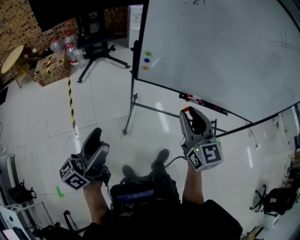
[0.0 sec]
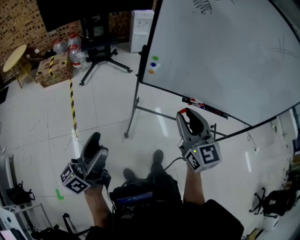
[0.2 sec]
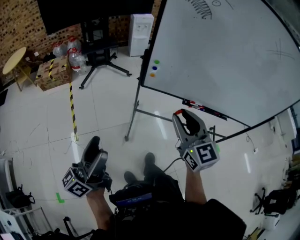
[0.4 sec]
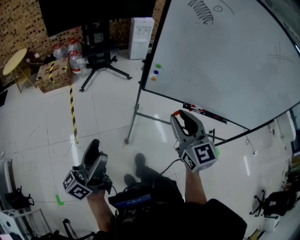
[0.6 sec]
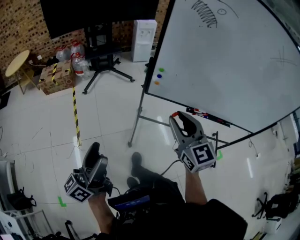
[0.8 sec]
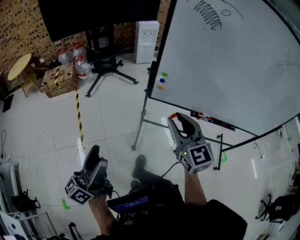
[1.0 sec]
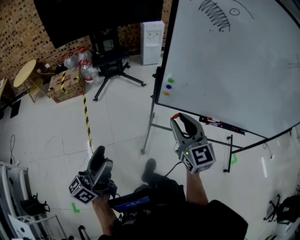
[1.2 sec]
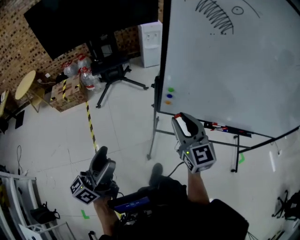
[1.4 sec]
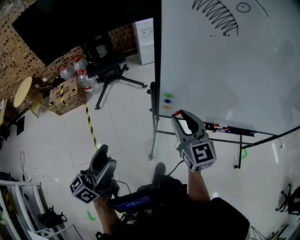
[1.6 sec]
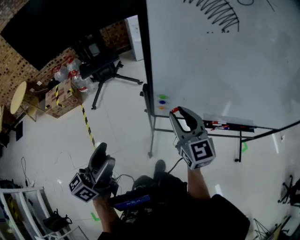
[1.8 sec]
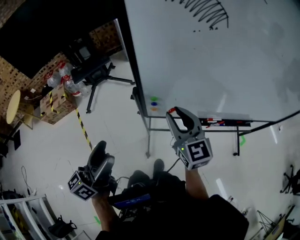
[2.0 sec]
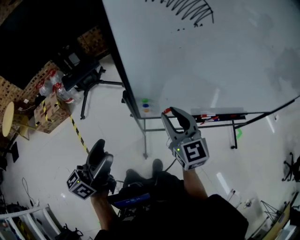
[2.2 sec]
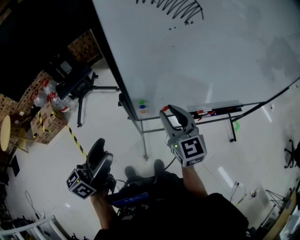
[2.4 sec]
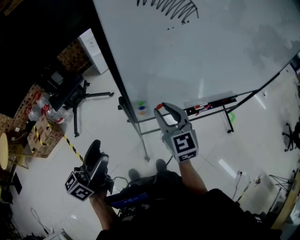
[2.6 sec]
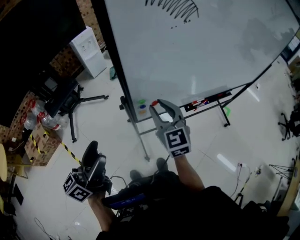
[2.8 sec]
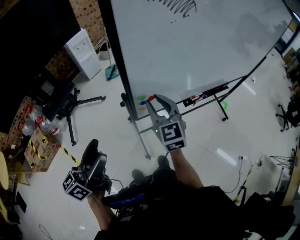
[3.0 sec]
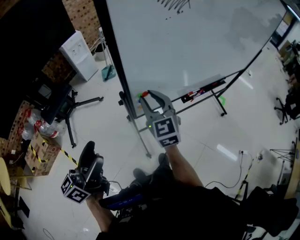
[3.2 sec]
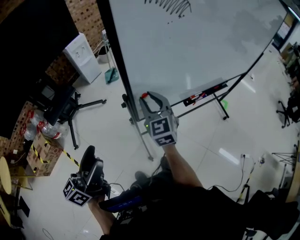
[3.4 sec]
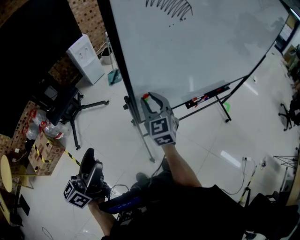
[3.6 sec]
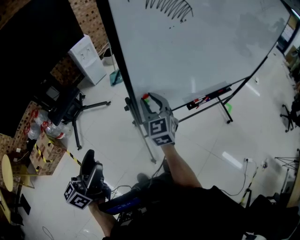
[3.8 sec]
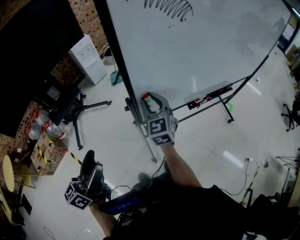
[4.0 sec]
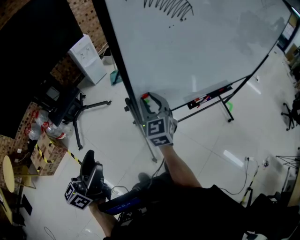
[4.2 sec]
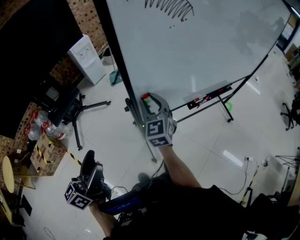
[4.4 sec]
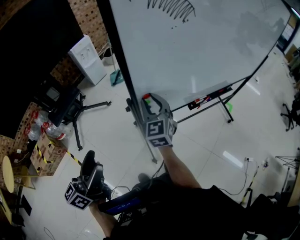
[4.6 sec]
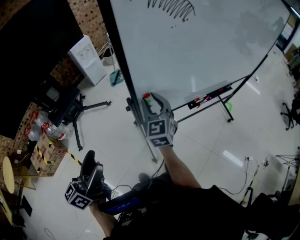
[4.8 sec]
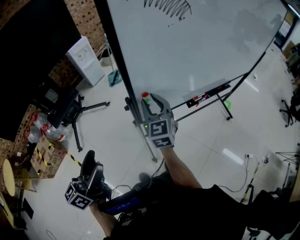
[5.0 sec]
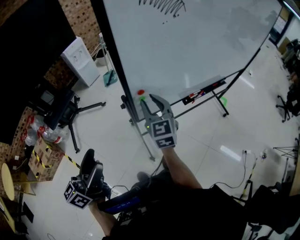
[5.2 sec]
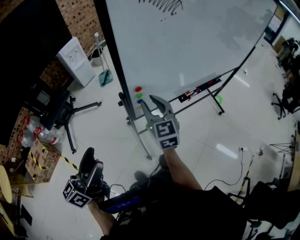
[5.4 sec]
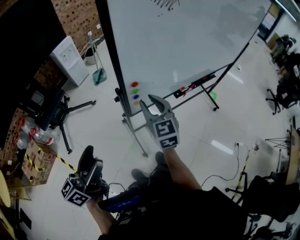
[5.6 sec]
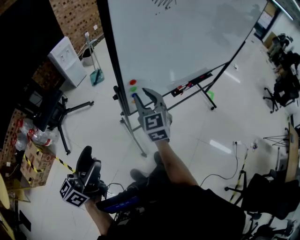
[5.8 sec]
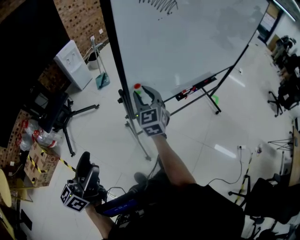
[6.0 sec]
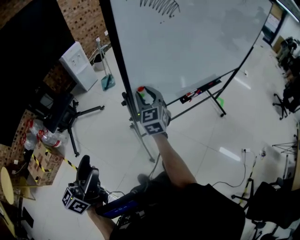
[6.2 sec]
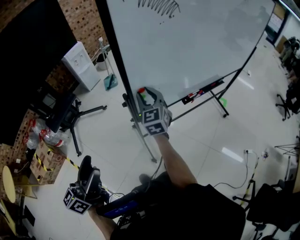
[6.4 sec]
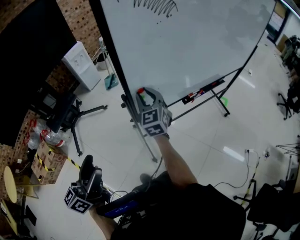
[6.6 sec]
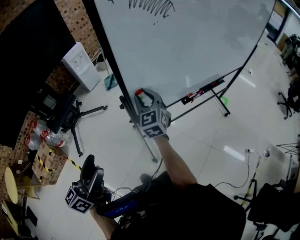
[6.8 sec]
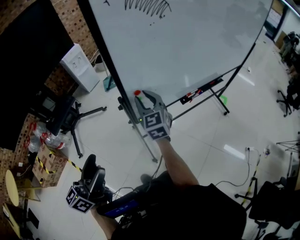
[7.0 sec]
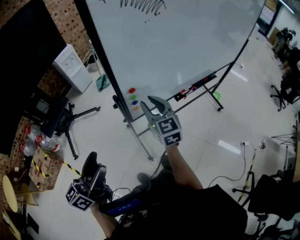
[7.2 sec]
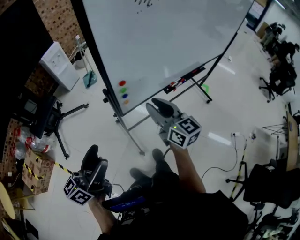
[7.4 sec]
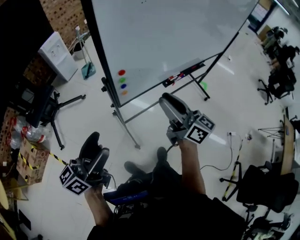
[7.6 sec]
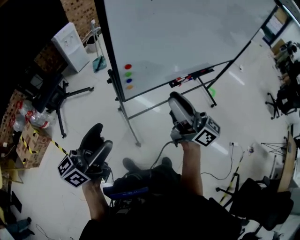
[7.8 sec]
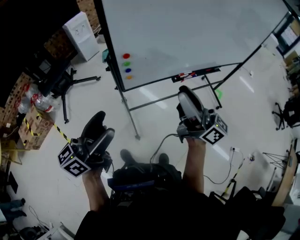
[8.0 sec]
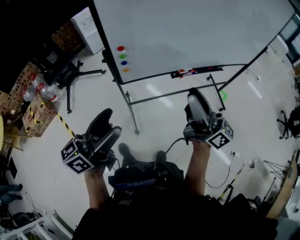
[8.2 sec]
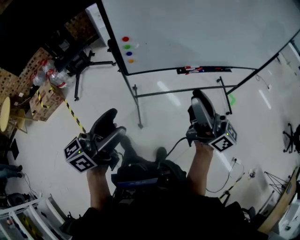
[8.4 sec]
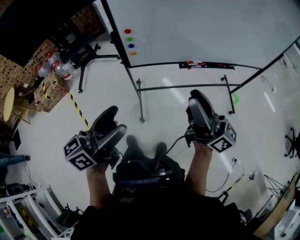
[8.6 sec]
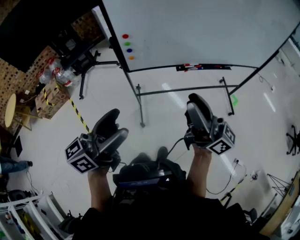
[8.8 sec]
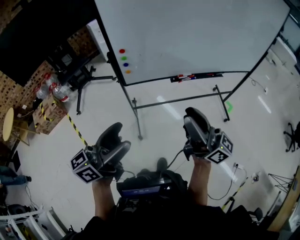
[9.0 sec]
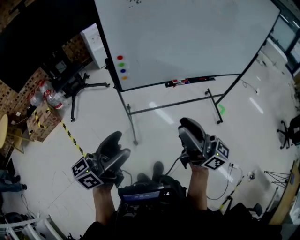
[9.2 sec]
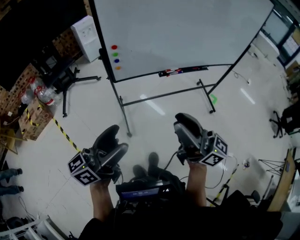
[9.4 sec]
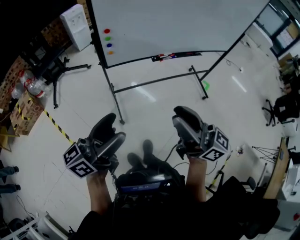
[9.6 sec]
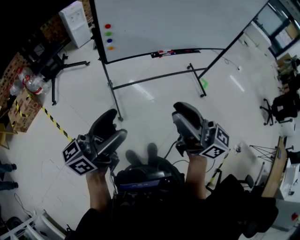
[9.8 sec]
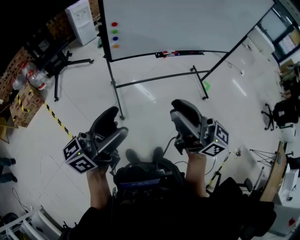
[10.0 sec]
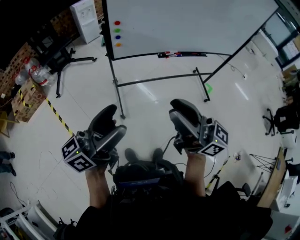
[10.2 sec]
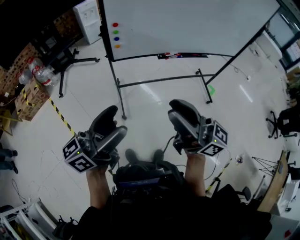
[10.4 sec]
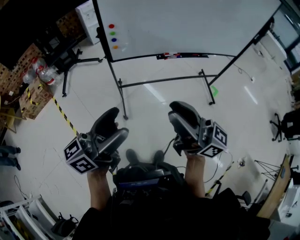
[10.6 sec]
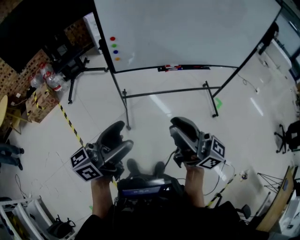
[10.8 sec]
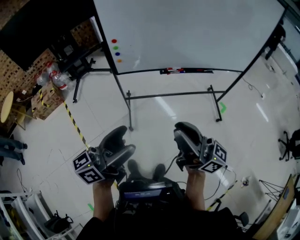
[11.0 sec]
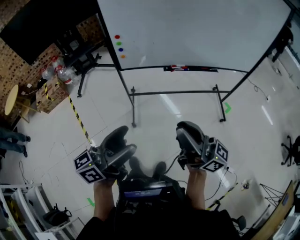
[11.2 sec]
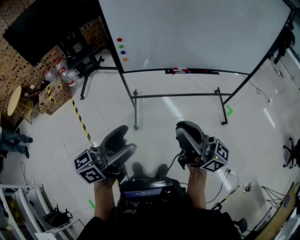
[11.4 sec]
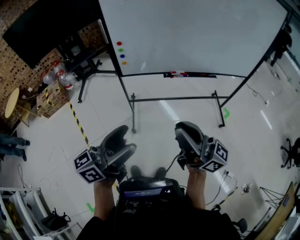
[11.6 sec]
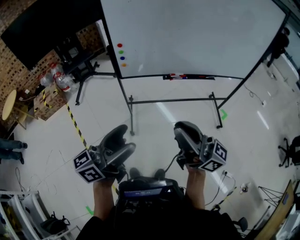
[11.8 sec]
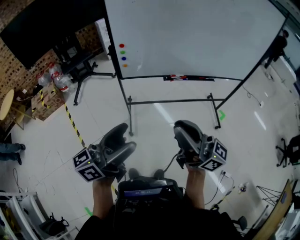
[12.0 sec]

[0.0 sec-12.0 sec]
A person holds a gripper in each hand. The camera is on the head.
0.0 sec to 1.6 sec: The right gripper heads forward and to the left, covering about 25 cm. The left gripper moves forward, about 20 cm.
1.6 sec to 3.0 sec: The right gripper changes place by approximately 10 cm, and turns by roughly 30 degrees. The left gripper moves some 15 cm, and turns by about 30 degrees.
3.0 sec to 4.4 sec: The grippers move only a little.
6.0 sec to 7.6 sec: The left gripper heads to the right, covering roughly 10 cm, while the right gripper shifts approximately 20 cm to the right and backward, and rolls clockwise, seen from behind, by some 50 degrees.
7.6 sec to 9.0 sec: The right gripper heads backward and to the right, covering approximately 25 cm, and rotates some 30 degrees; the left gripper moves to the right and backward, about 30 cm.
9.0 sec to 10.4 sec: The right gripper moves backward and to the left, approximately 10 cm, while the left gripper goes approximately 5 cm backward.
10.4 sec to 12.0 sec: Both grippers travel together to the right, roughly 10 cm.

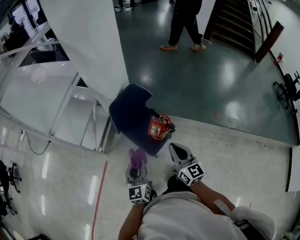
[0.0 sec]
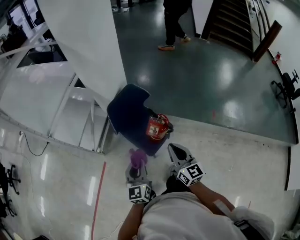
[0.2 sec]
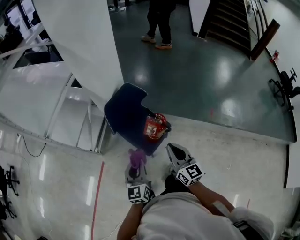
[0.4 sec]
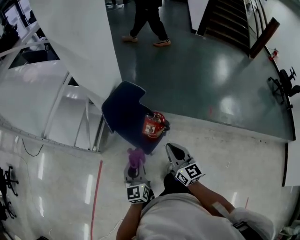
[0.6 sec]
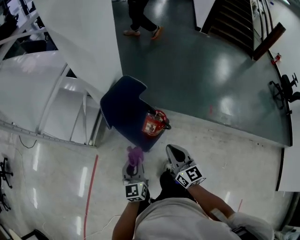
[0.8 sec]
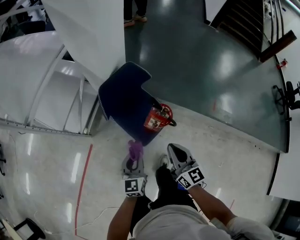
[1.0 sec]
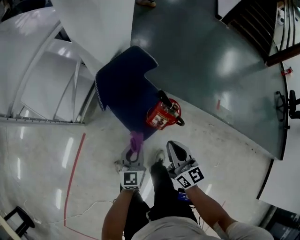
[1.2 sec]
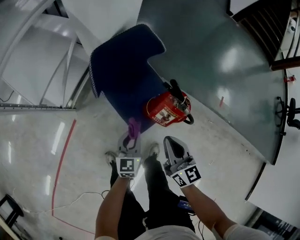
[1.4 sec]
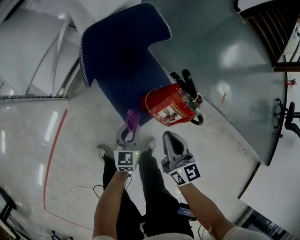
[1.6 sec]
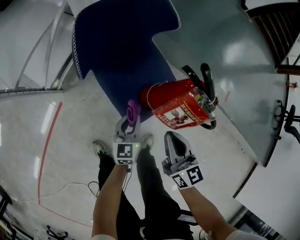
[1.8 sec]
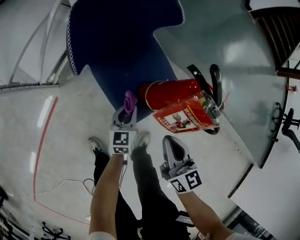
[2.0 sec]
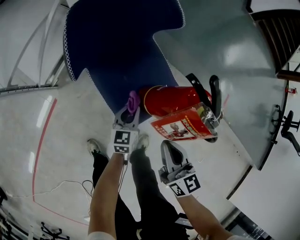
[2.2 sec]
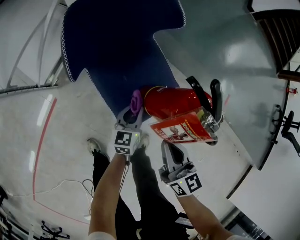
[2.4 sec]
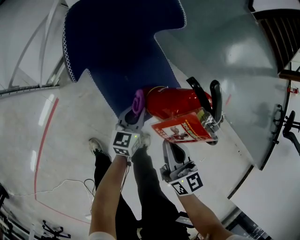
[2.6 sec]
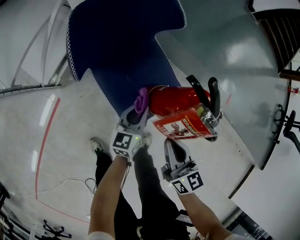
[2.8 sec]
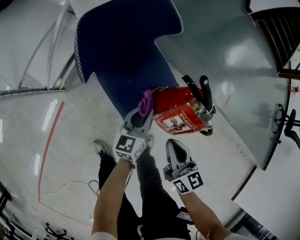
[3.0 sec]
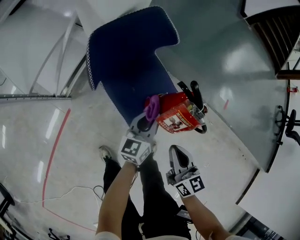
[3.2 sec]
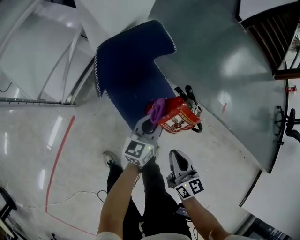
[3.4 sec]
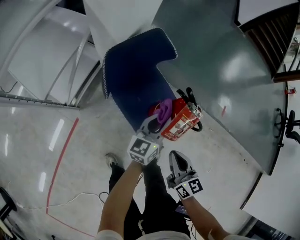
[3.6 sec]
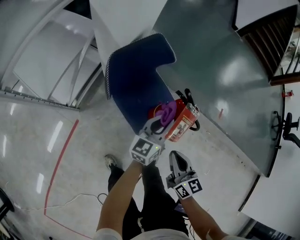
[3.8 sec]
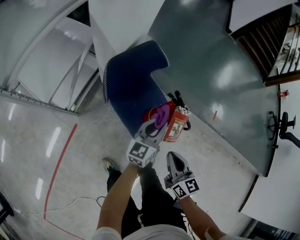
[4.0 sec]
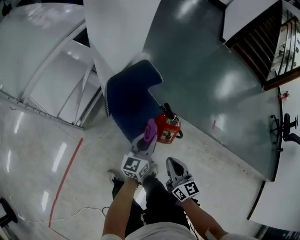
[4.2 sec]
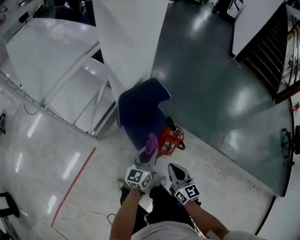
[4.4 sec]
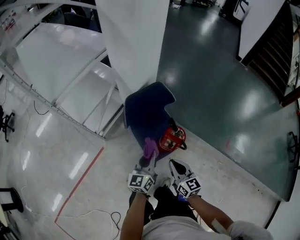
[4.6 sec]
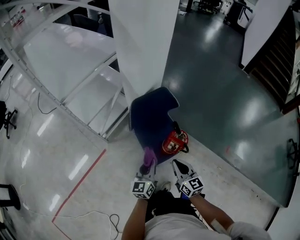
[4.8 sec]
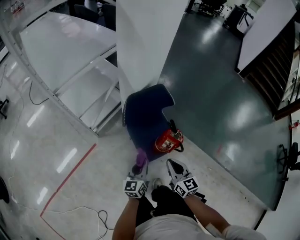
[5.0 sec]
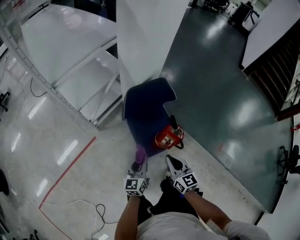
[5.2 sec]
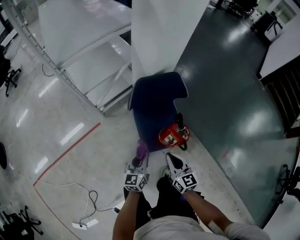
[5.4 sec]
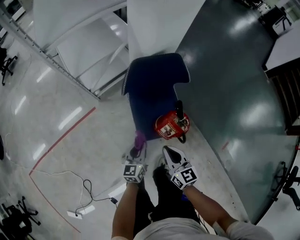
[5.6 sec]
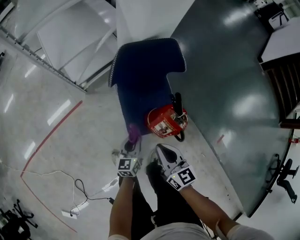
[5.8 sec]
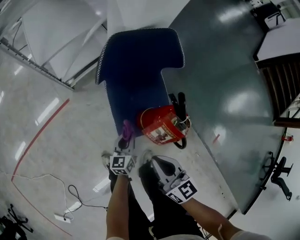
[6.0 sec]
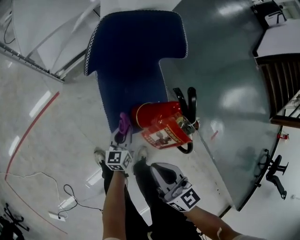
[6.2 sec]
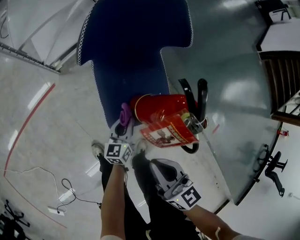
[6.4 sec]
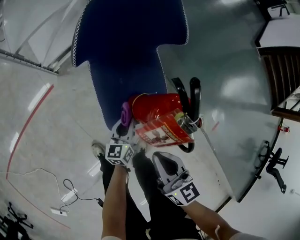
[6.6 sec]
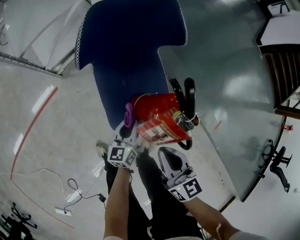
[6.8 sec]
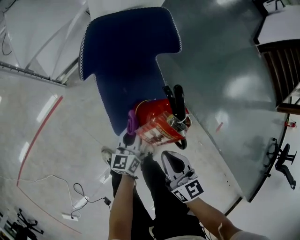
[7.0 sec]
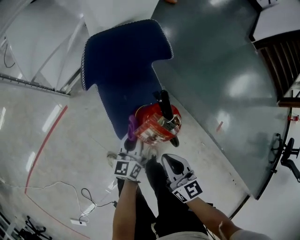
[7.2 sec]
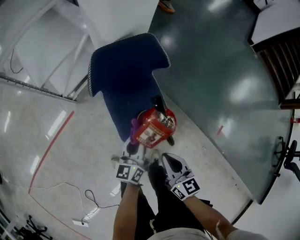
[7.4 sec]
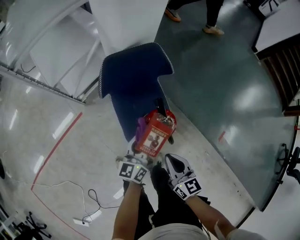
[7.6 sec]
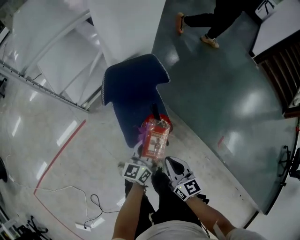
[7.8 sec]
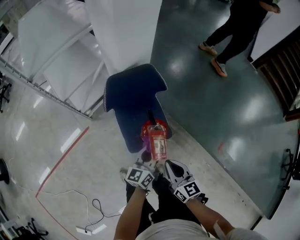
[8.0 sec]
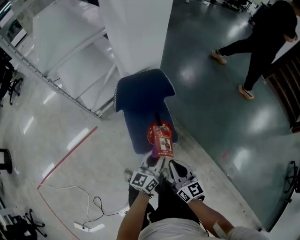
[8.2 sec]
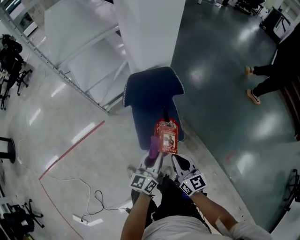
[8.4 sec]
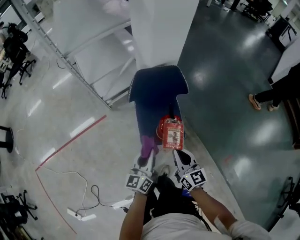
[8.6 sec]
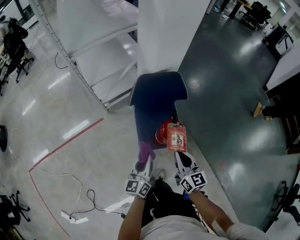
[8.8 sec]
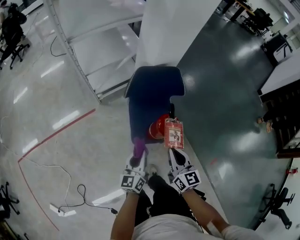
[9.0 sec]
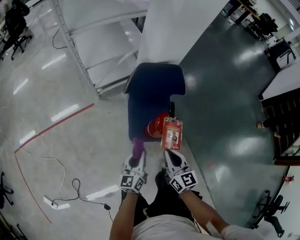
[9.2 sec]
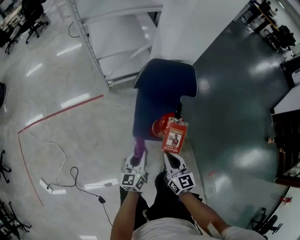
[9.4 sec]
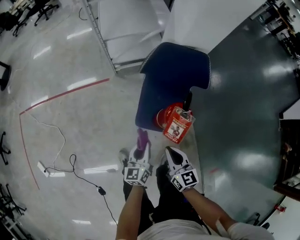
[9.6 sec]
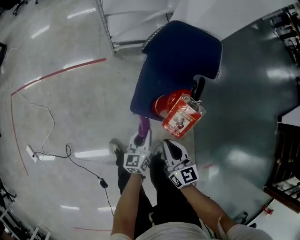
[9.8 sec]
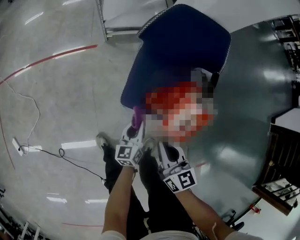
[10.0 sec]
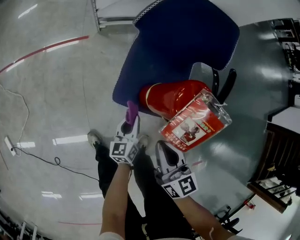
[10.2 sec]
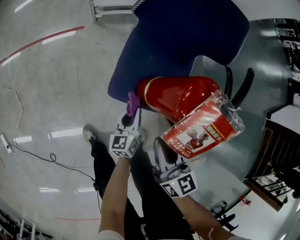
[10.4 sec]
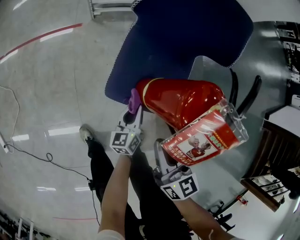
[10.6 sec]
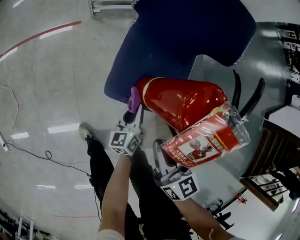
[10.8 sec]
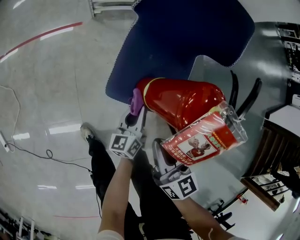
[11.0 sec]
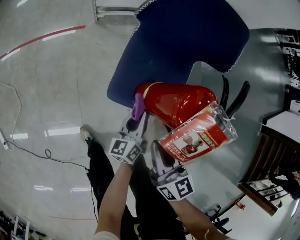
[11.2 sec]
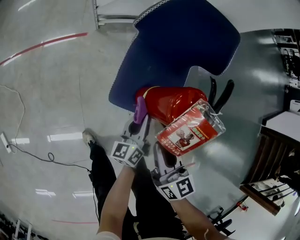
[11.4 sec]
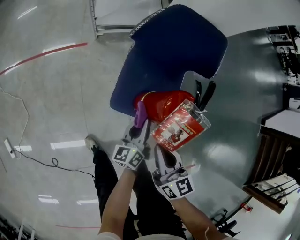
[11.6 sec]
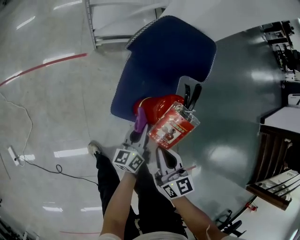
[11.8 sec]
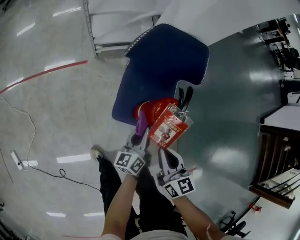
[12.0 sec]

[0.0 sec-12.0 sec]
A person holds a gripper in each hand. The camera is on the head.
0.0 sec to 1.6 sec: Both grippers move downward, about 30 cm.
1.6 sec to 3.0 sec: The left gripper is displaced forward by roughly 5 cm, and reaches about 10 cm downward, then returns.
3.0 sec to 4.4 sec: The grippers both shift upward by about 20 cm.
4.4 sec to 6.0 sec: The left gripper moves downward, approximately 30 cm, and turns by some 30 degrees. The right gripper is displaced downward by roughly 10 cm, and swivels roughly 30 degrees.
6.0 sec to 7.6 sec: The left gripper heads upward, covering roughly 20 cm, while the right gripper shifts approximately 5 cm to the right.
7.6 sec to 9.0 sec: The left gripper is displaced backward and to the left by some 15 cm. Meanwhile the right gripper goes some 10 cm upward.
9.0 sec to 10.4 sec: The left gripper travels downward by approximately 35 cm, and changes its angle by roughly 20 degrees; the right gripper shifts some 20 cm downward, and changes its angle by about 20 degrees.
10.4 sec to 12.0 sec: The right gripper moves upward, roughly 10 cm. The left gripper shifts about 20 cm upward.
